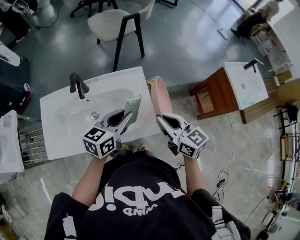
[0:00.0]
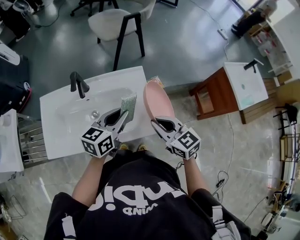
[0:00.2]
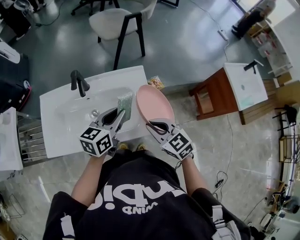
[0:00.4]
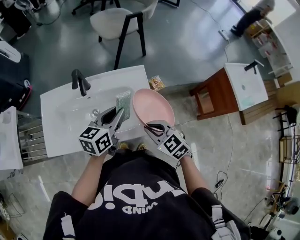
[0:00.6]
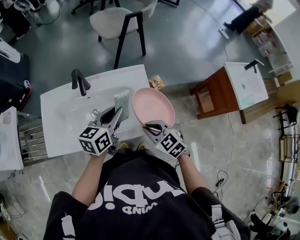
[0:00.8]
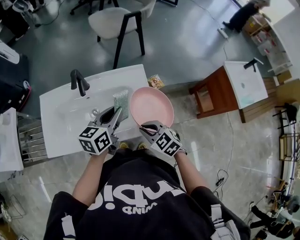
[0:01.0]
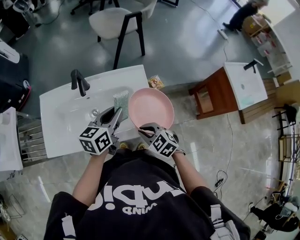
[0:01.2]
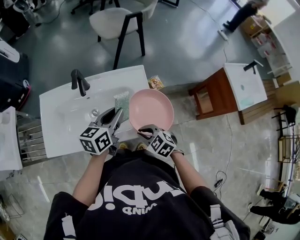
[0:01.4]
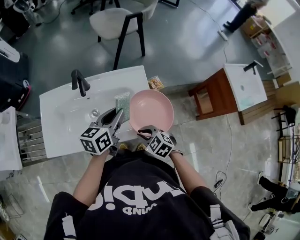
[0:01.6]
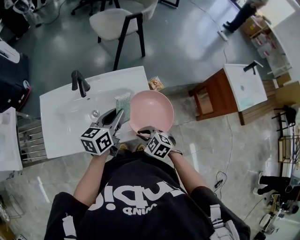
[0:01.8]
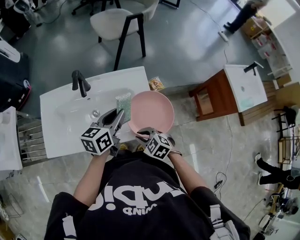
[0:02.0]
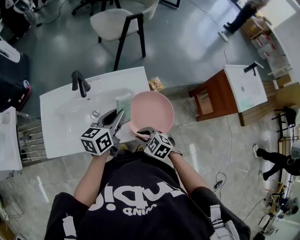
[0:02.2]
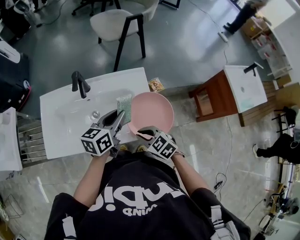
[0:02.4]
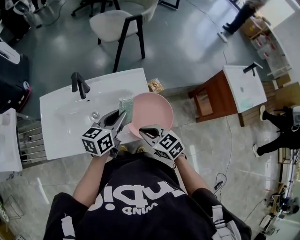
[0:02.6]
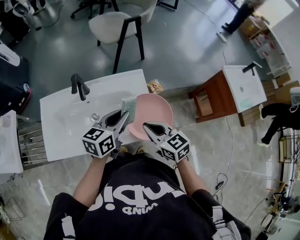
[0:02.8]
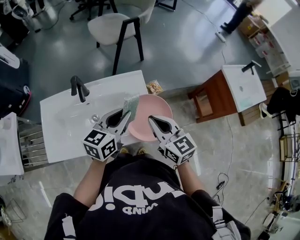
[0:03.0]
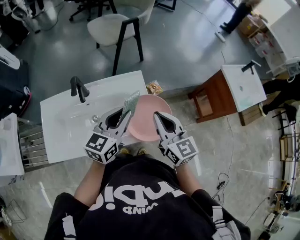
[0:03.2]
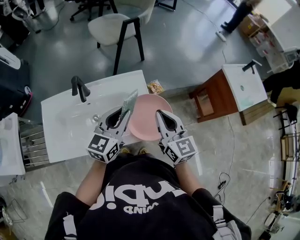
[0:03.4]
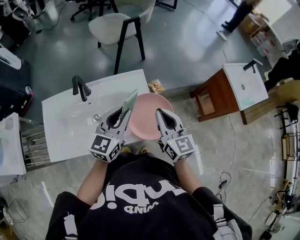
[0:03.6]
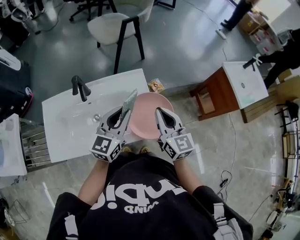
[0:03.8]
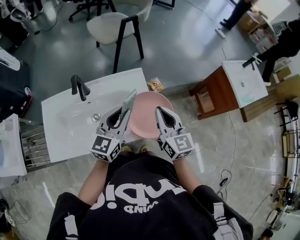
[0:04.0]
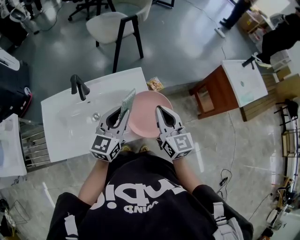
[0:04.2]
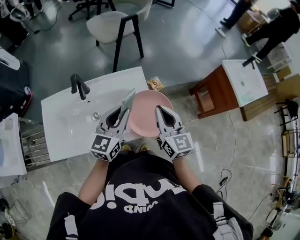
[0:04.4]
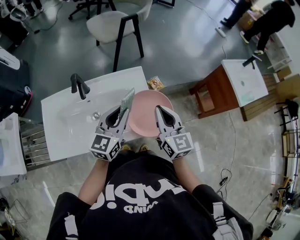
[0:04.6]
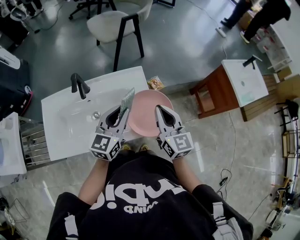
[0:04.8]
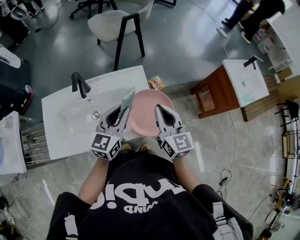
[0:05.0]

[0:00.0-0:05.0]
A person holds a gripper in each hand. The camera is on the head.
0.0 to 1.6 s: The left gripper shifts by approximately 5 cm. Meanwhile the right gripper heads downward and to the left, covering approximately 20 cm, and tilts its fingers roughly 40 degrees downward.
1.6 to 3.4 s: The right gripper heads upward and to the right, covering about 20 cm, and tips its fingers upward by approximately 40 degrees. The left gripper heads upward, covering about 5 cm, and turns by approximately 30 degrees.
3.4 to 5.0 s: The grippers make only small movements.

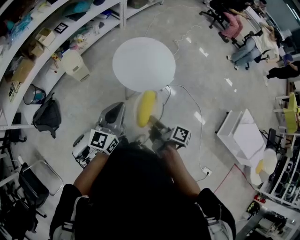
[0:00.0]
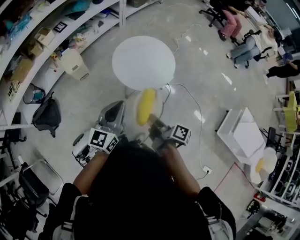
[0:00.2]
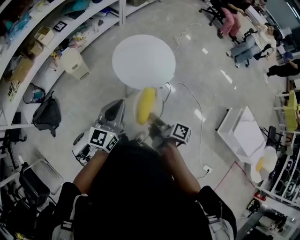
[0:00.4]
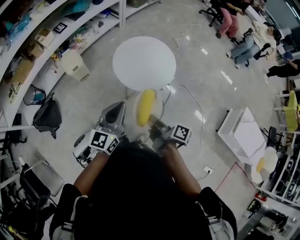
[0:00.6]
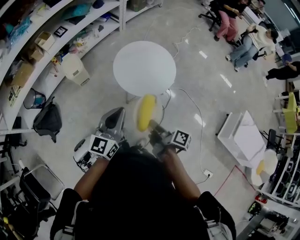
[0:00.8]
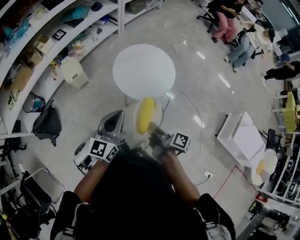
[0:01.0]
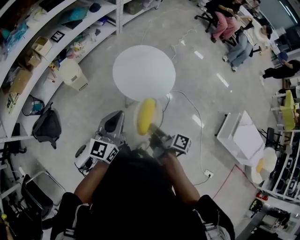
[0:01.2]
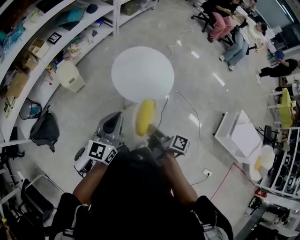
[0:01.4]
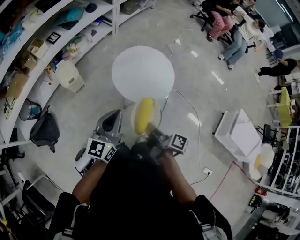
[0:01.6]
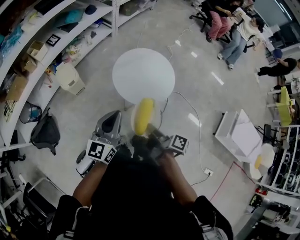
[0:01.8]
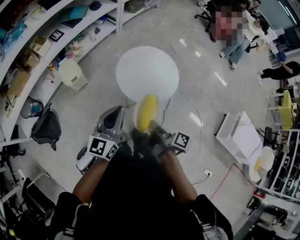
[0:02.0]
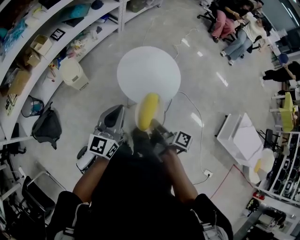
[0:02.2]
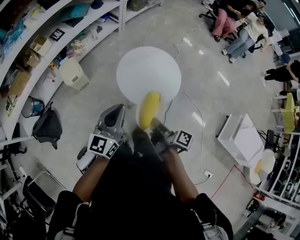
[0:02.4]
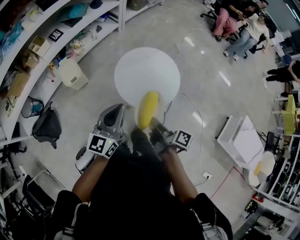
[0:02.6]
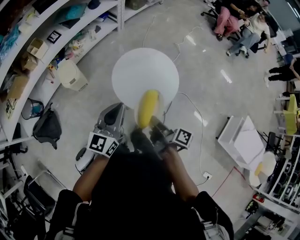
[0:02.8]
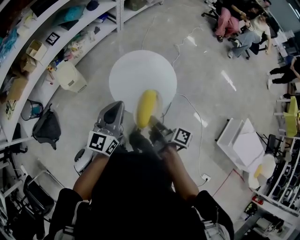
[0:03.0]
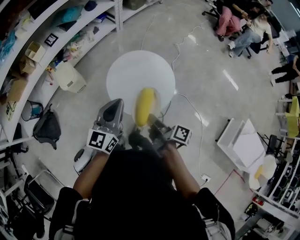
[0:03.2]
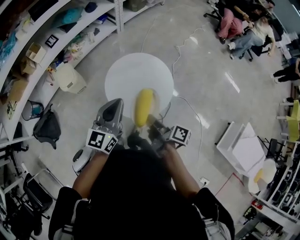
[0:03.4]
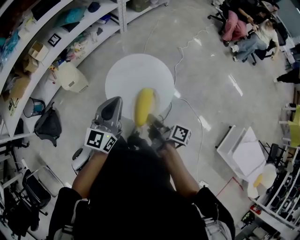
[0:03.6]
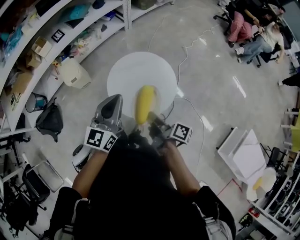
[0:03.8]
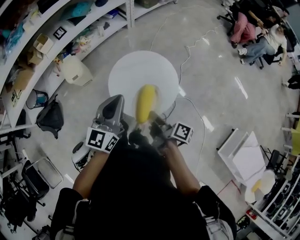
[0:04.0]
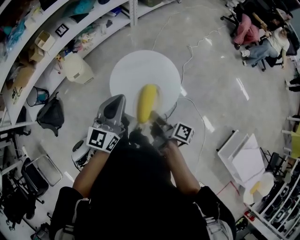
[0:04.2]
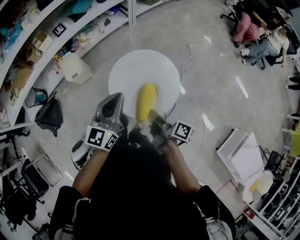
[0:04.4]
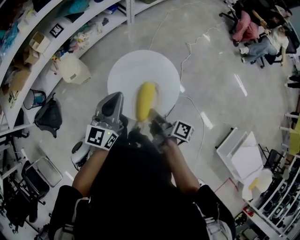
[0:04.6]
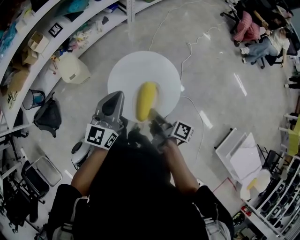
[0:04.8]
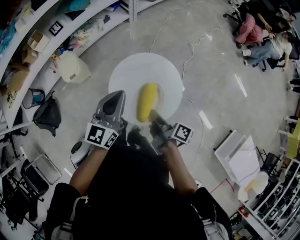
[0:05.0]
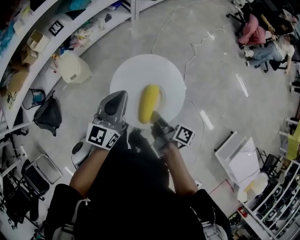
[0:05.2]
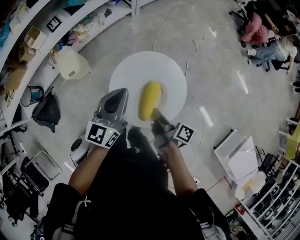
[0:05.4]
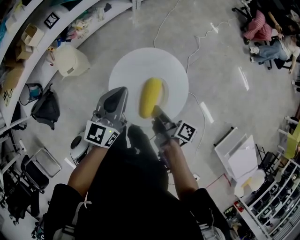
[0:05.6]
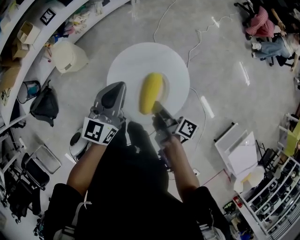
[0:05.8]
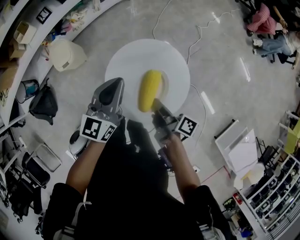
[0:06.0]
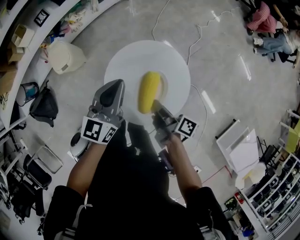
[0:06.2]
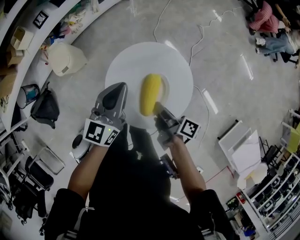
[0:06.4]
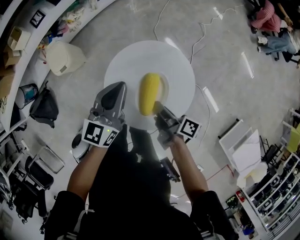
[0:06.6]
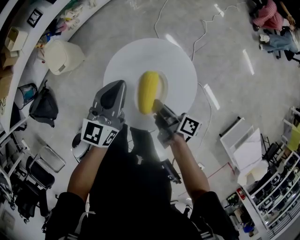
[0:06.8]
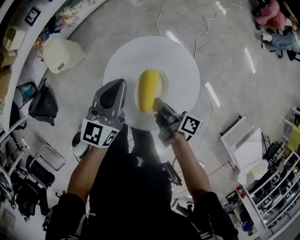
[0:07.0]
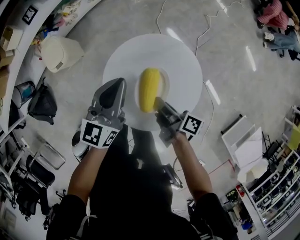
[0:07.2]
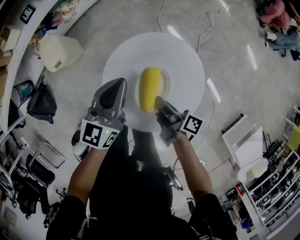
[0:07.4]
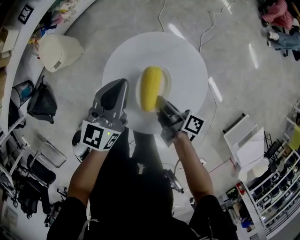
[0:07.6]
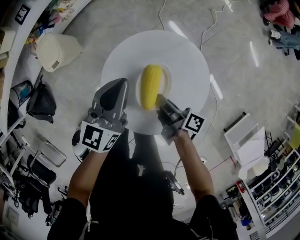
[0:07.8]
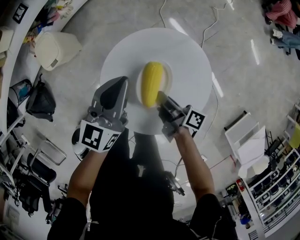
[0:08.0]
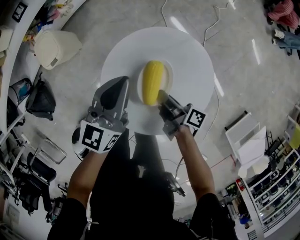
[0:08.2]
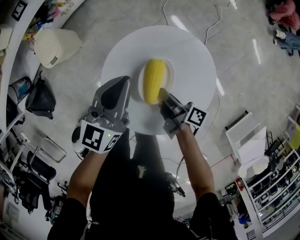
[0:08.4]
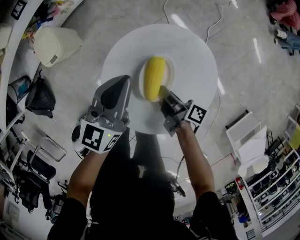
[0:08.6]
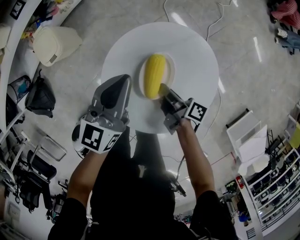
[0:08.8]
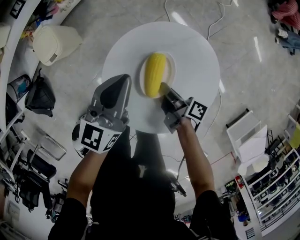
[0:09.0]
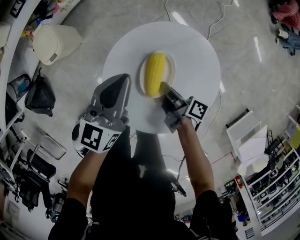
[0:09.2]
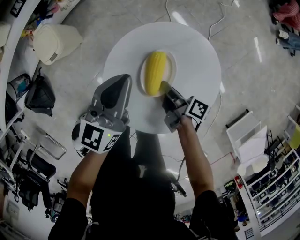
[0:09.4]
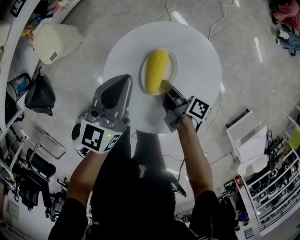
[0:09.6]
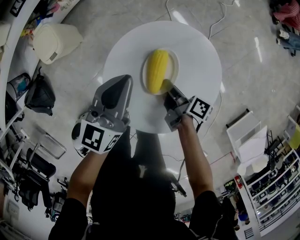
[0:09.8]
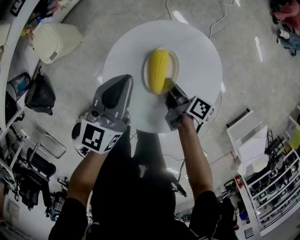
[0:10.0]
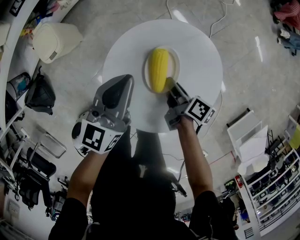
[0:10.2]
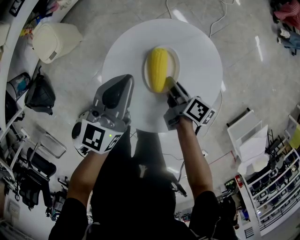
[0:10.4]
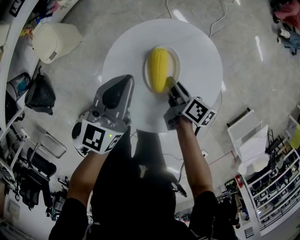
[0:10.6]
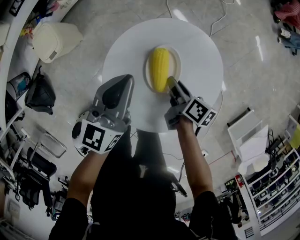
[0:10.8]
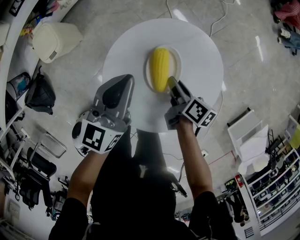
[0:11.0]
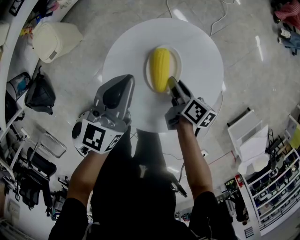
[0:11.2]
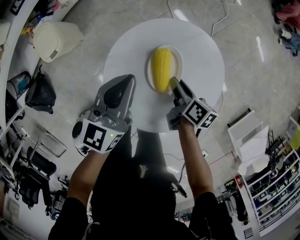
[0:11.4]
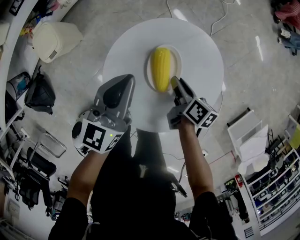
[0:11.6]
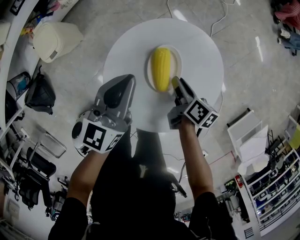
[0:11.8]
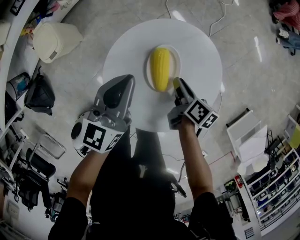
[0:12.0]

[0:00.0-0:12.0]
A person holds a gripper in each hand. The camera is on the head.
0.0 to 1.6 s: The left gripper ends up roughly 10 cm from where it was.
1.6 to 3.0 s: The left gripper ends up some 15 cm from where it was.
3.0 to 4.4 s: The left gripper moves approximately 10 cm.
4.4 to 6.0 s: The left gripper changes place by some 15 cm.
6.0 to 7.6 s: The left gripper is displaced downward by some 10 cm.

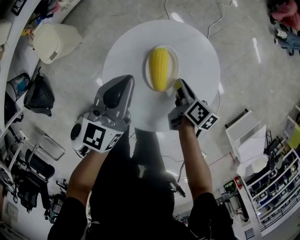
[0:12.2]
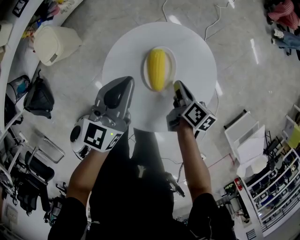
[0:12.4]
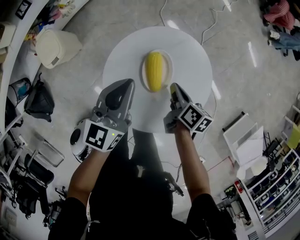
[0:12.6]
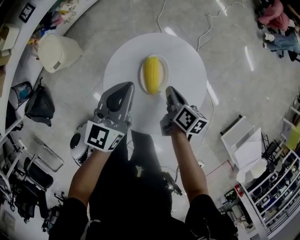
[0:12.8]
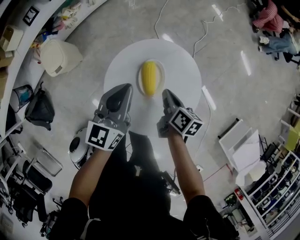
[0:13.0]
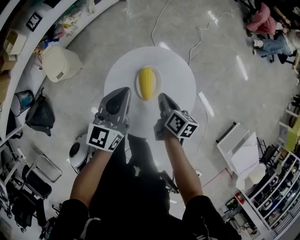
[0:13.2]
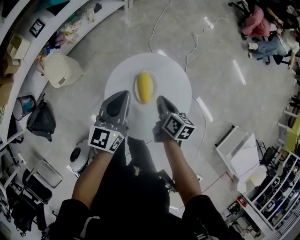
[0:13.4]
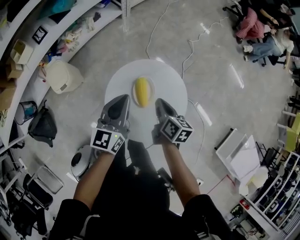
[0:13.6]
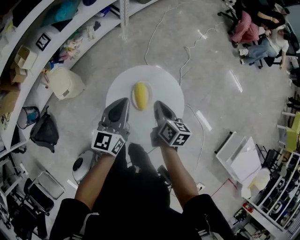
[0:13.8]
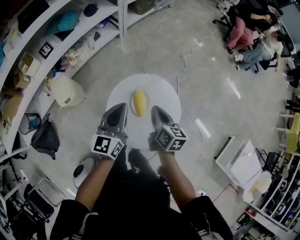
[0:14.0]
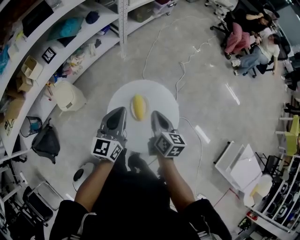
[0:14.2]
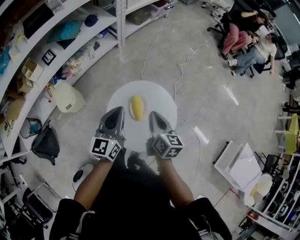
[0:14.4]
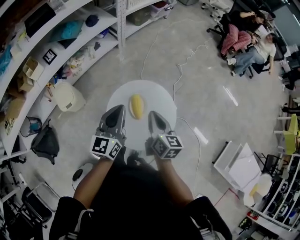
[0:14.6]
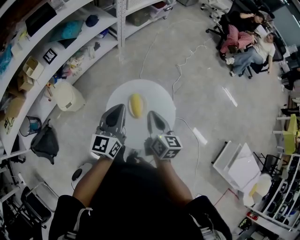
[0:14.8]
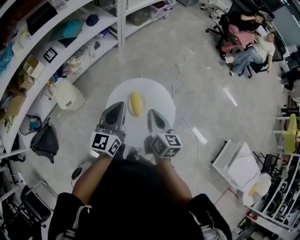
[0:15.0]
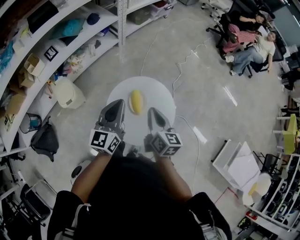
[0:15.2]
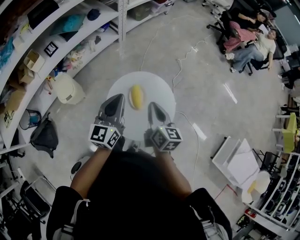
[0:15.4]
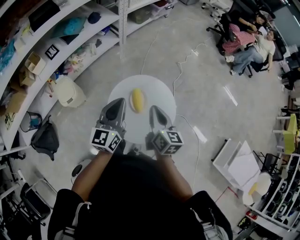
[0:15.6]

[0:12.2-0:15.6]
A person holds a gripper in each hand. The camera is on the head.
12.2 to 13.8 s: The left gripper heads upward, covering some 15 cm.
13.8 to 15.6 s: The left gripper heads upward, covering about 10 cm.

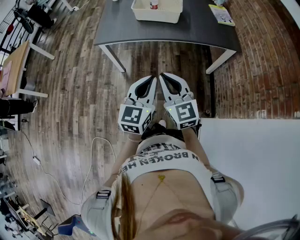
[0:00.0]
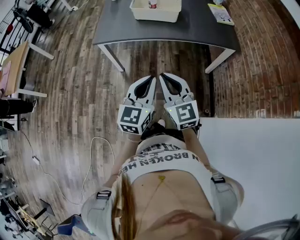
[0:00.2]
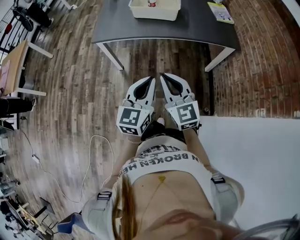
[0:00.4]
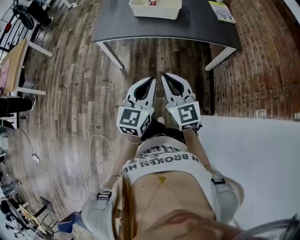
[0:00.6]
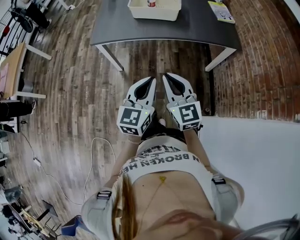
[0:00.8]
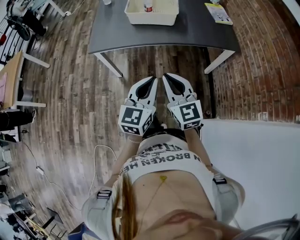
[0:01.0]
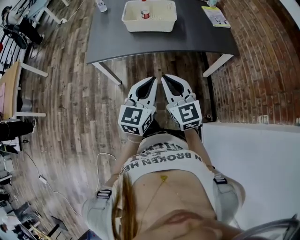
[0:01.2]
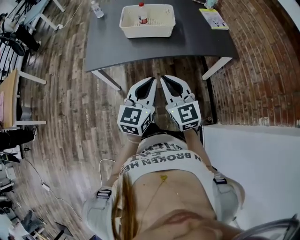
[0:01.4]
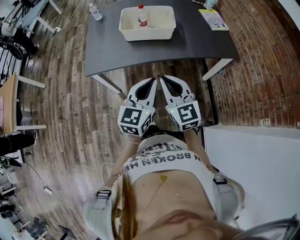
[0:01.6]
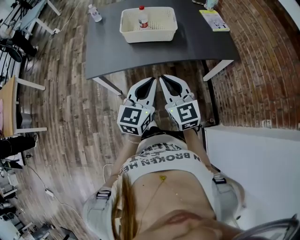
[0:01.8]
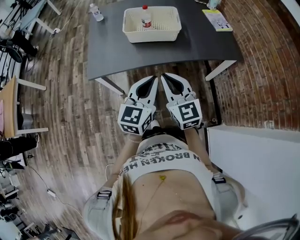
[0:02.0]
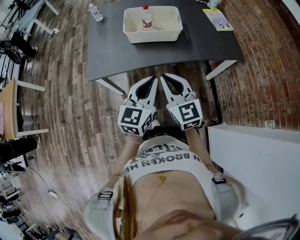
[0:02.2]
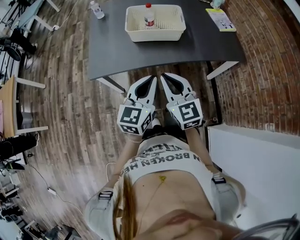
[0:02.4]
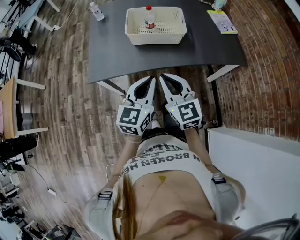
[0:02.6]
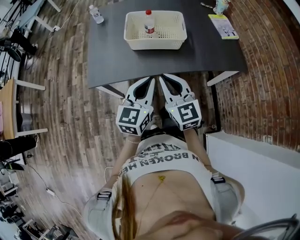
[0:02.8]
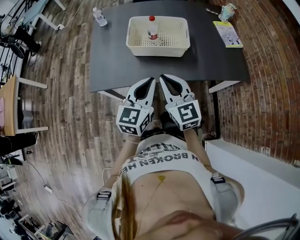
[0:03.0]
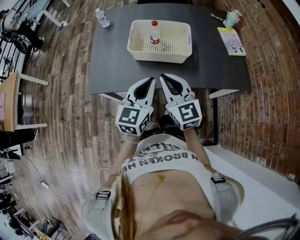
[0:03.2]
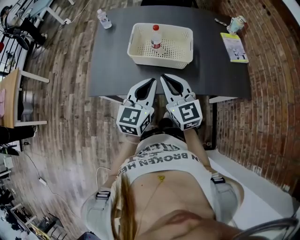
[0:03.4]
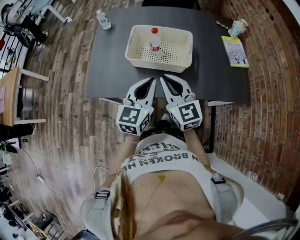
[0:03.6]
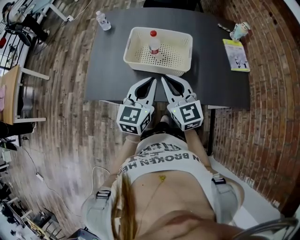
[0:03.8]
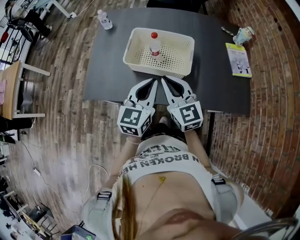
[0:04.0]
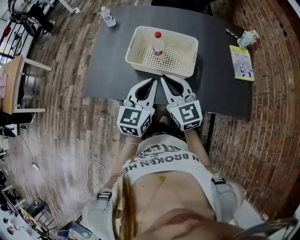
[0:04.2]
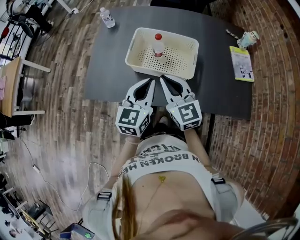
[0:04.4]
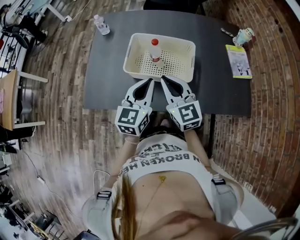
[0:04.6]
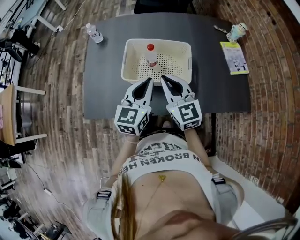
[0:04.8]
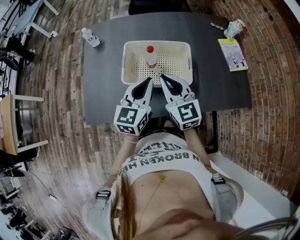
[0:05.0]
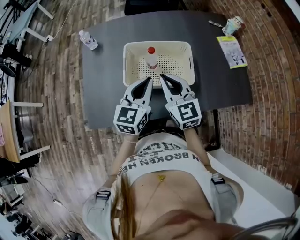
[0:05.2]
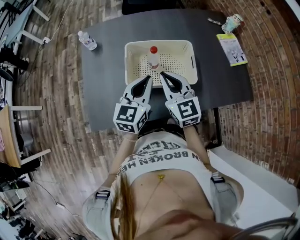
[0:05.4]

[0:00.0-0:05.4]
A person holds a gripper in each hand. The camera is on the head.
0.0 to 1.4 s: The grippers both shift forward by roughly 15 cm.
1.4 to 2.8 s: Both grippers travel together forward, approximately 15 cm.
2.8 to 4.0 s: The right gripper moves forward, some 20 cm. Meanwhile the left gripper is displaced forward and to the right by some 20 cm.
4.0 to 5.4 s: The grippers both shift forward and to the left by approximately 15 cm.
